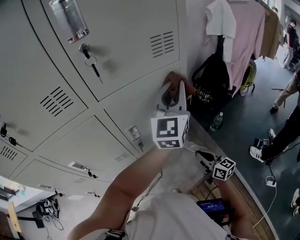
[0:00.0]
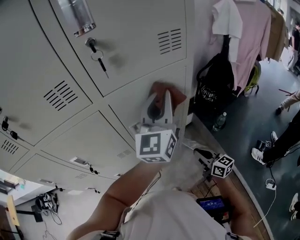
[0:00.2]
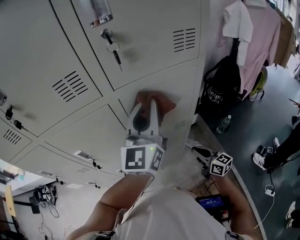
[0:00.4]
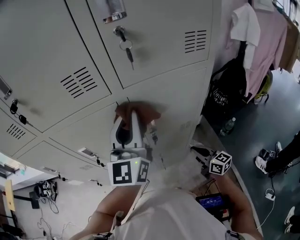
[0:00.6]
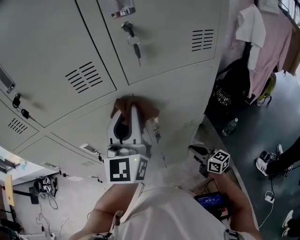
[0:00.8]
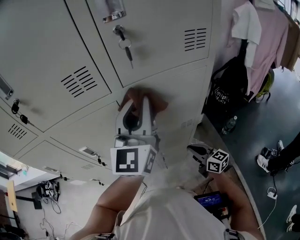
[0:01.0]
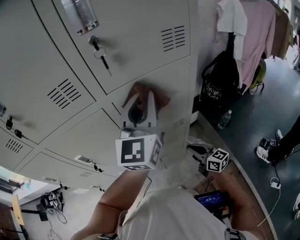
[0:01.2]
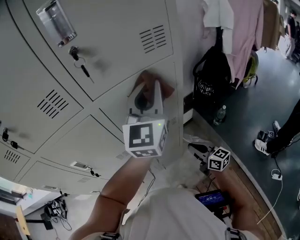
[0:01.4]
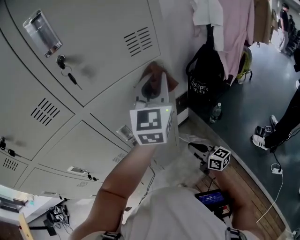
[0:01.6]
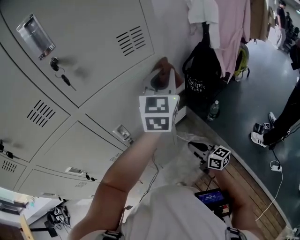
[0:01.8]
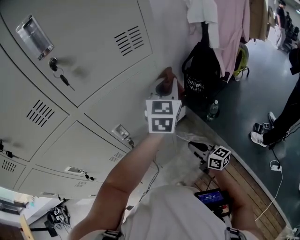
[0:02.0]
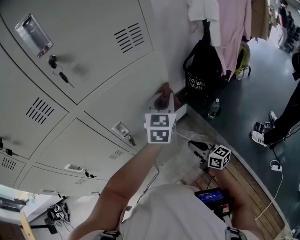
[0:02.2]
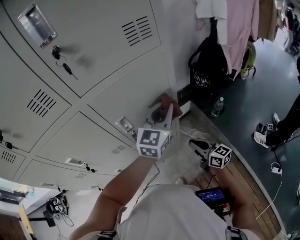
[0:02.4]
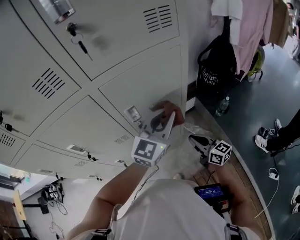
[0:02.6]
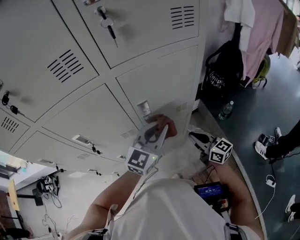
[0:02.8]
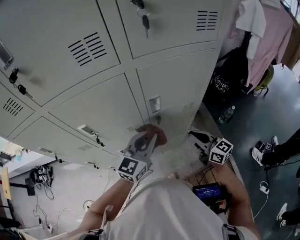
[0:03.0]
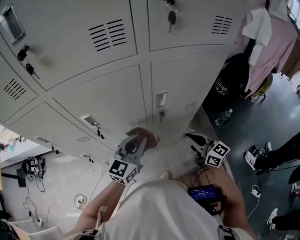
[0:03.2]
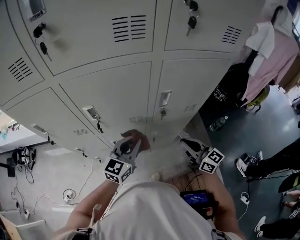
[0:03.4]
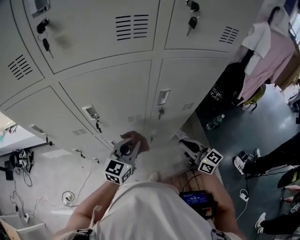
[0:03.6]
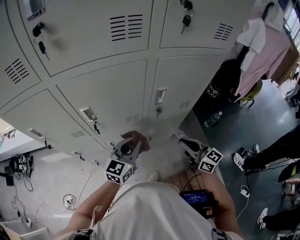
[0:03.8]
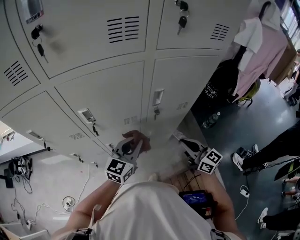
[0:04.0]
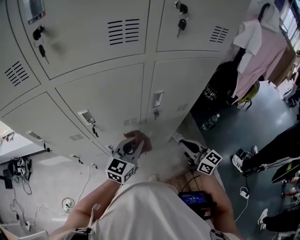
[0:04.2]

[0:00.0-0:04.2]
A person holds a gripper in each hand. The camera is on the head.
0:00.0 to 0:01.4: The left gripper reaches roughly 25 cm to the left, then returns.
0:01.4 to 0:02.8: The left gripper travels downward and backward by roughly 25 cm, and changes its angle by about 20 degrees.
0:02.8 to 0:04.2: The left gripper travels to the left and downward by roughly 15 cm; the right gripper heads to the left and backward, covering roughly 10 cm.

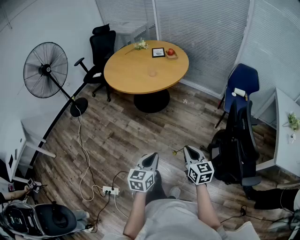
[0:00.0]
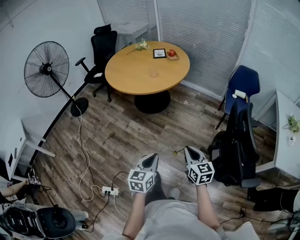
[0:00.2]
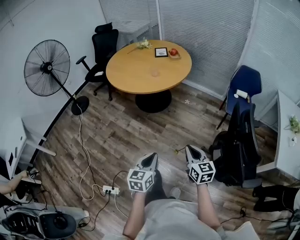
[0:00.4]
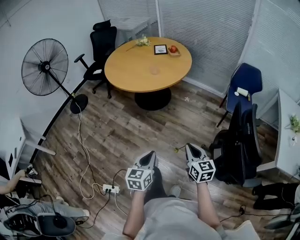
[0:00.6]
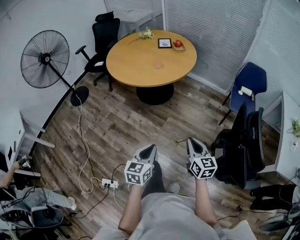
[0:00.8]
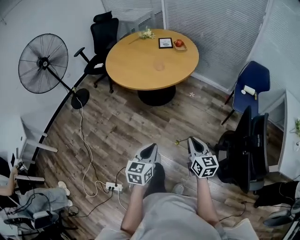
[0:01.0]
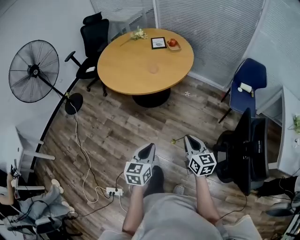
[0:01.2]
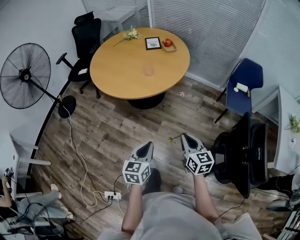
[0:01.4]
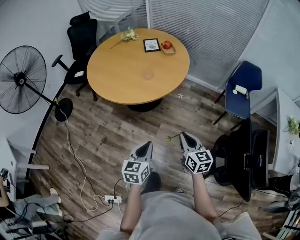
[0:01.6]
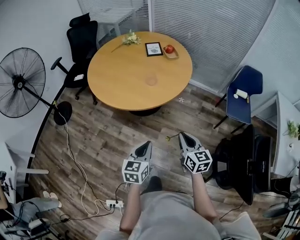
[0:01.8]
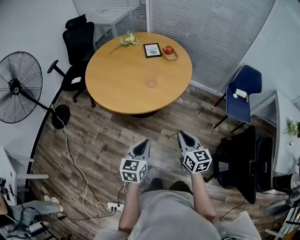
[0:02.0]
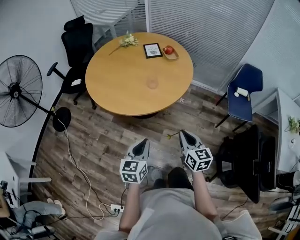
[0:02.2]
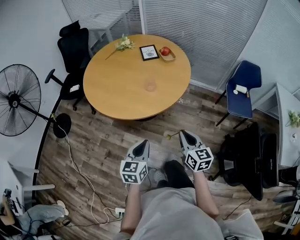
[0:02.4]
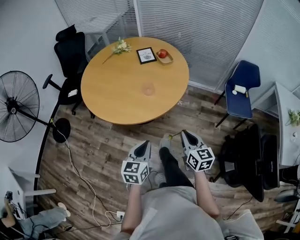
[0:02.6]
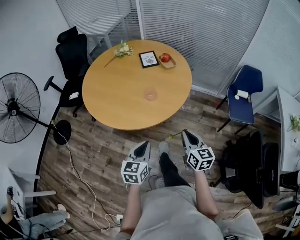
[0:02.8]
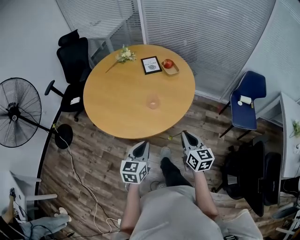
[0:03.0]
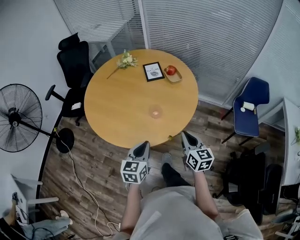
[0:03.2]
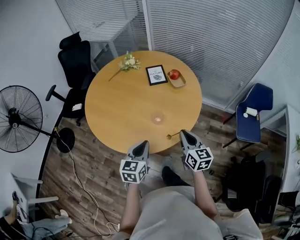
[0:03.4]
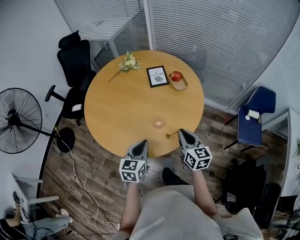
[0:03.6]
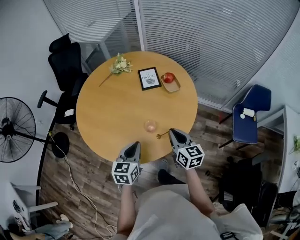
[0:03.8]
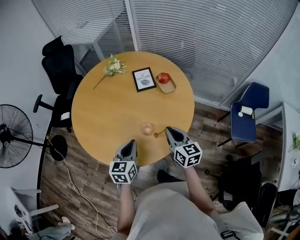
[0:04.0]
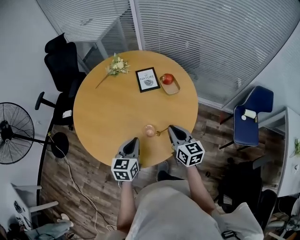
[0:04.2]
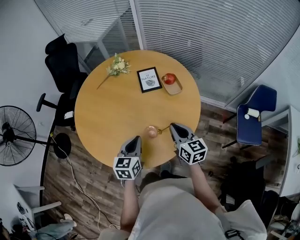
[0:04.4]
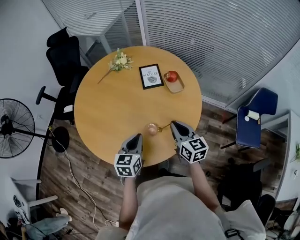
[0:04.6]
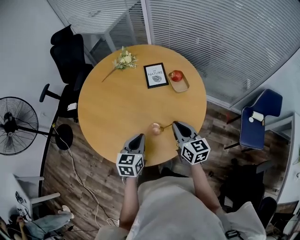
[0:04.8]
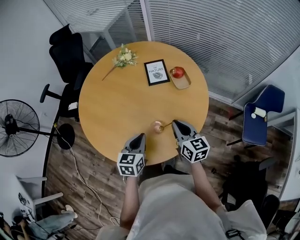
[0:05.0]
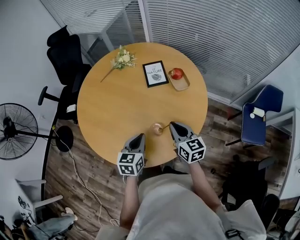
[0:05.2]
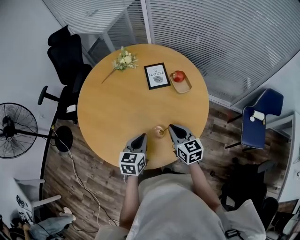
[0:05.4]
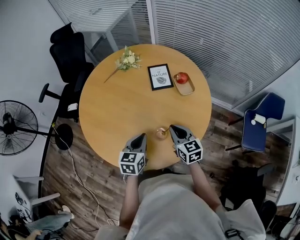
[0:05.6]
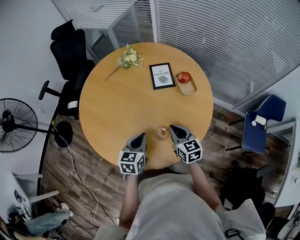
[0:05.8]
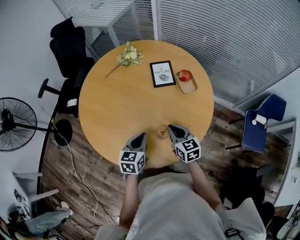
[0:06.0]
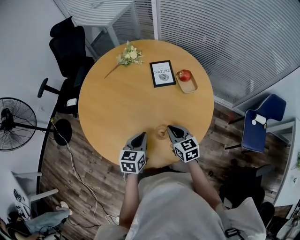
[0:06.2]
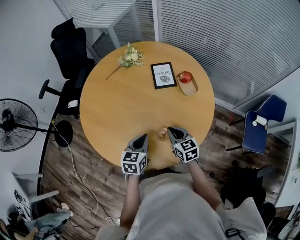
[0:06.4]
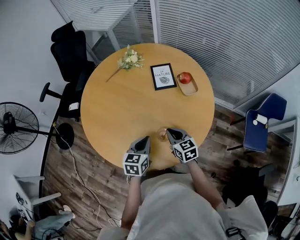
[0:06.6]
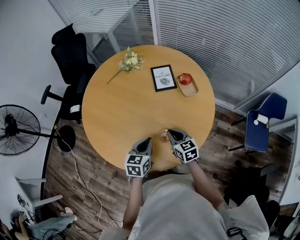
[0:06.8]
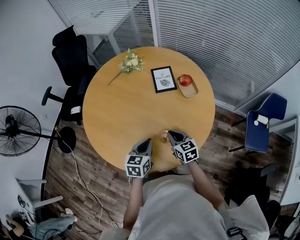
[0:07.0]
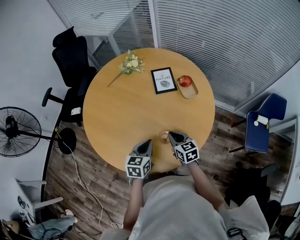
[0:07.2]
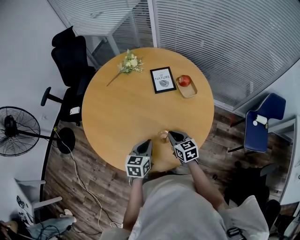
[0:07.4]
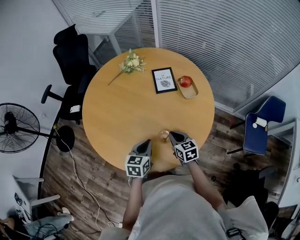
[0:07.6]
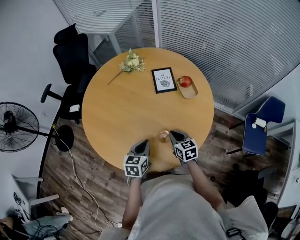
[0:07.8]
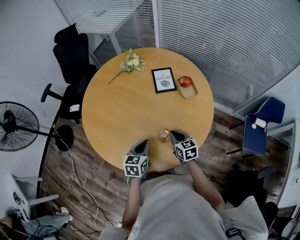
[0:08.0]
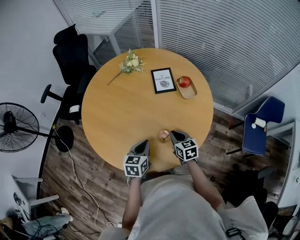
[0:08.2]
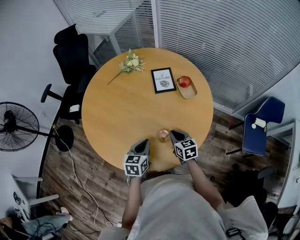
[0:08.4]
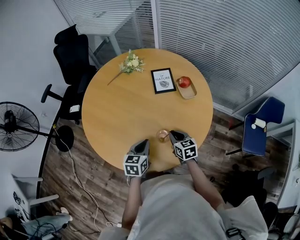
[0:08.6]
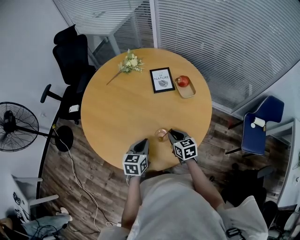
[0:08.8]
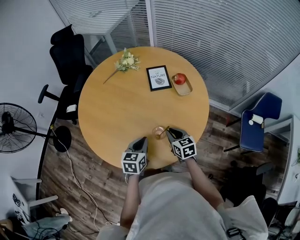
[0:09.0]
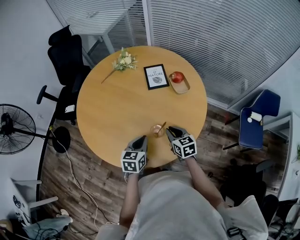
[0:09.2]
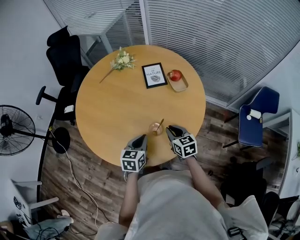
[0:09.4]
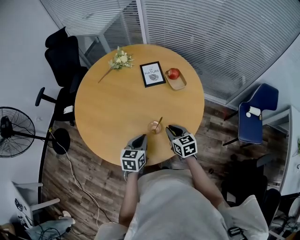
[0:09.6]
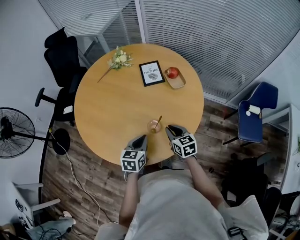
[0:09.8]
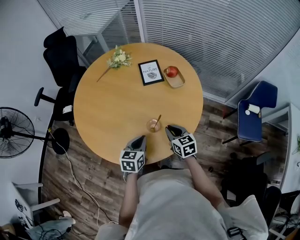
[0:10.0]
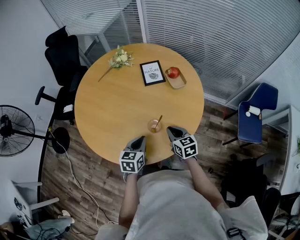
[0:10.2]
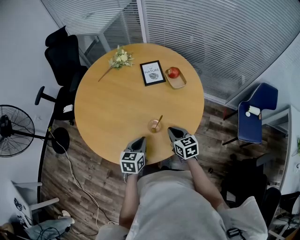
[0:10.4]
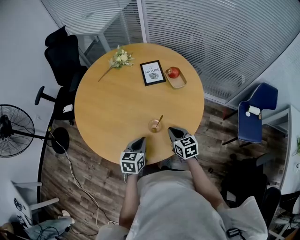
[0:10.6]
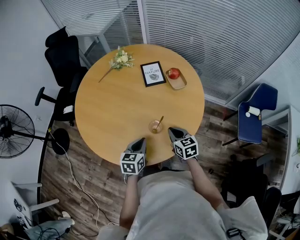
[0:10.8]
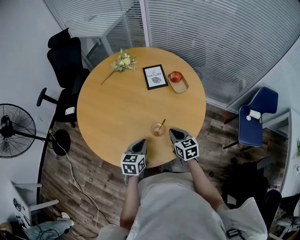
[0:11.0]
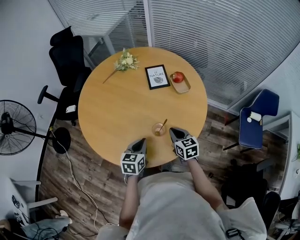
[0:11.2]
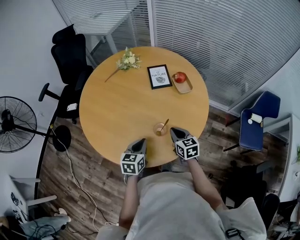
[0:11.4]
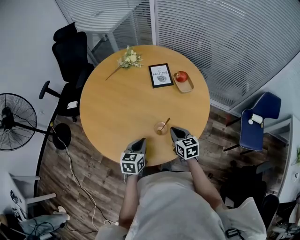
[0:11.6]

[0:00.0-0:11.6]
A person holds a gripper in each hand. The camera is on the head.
0:00.0 to 0:01.4: Both grippers move forward, roughly 20 cm.
0:01.4 to 0:02.8: The left gripper goes about 25 cm forward and to the left, while the right gripper heads forward, covering some 20 cm.
0:02.8 to 0:04.4: The two grippers go roughly 35 cm forward.
0:04.4 to 0:05.8: The right gripper heads downward and to the left, covering roughly 10 cm. Meanwhile the left gripper shifts by about 5 cm.
0:05.8 to 0:07.2: The right gripper travels downward by about 5 cm.
0:07.2 to 0:08.8: The grippers stay close to where they were, moving slightly.
0:08.8 to 0:10.2: The right gripper moves approximately 5 cm.
0:10.2 to 0:11.6: The grippers make only small movements.

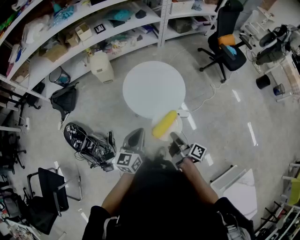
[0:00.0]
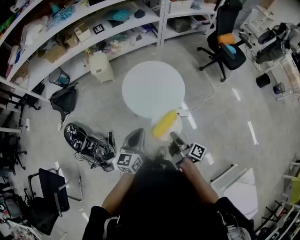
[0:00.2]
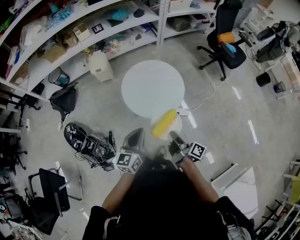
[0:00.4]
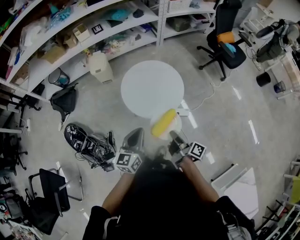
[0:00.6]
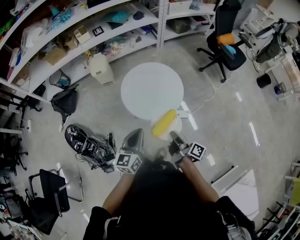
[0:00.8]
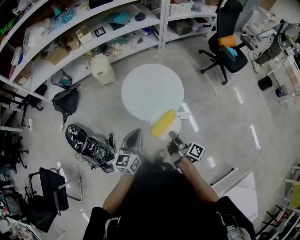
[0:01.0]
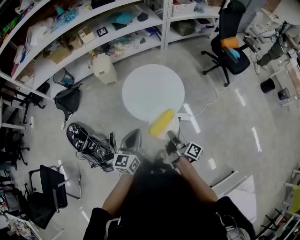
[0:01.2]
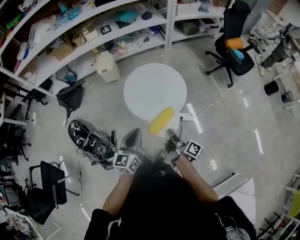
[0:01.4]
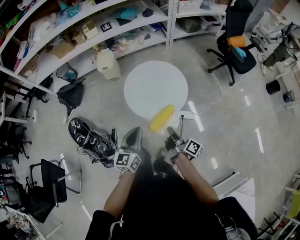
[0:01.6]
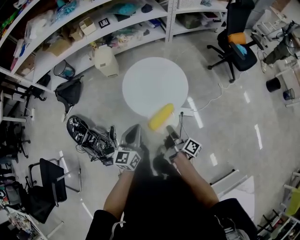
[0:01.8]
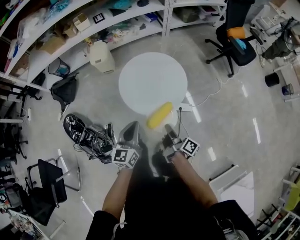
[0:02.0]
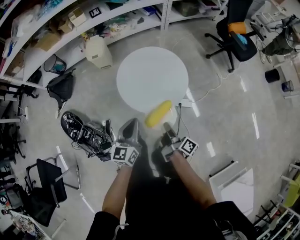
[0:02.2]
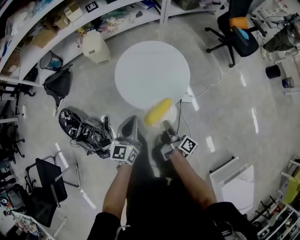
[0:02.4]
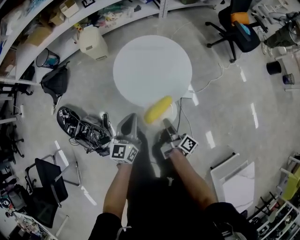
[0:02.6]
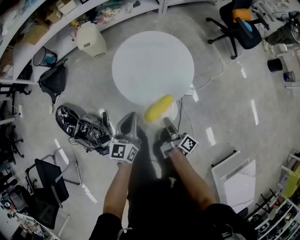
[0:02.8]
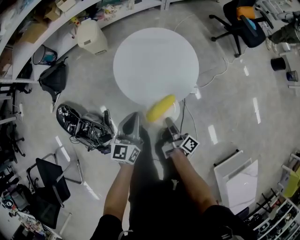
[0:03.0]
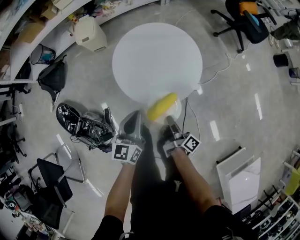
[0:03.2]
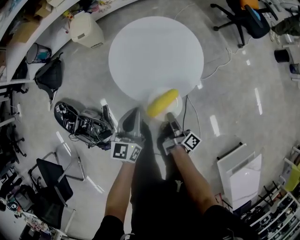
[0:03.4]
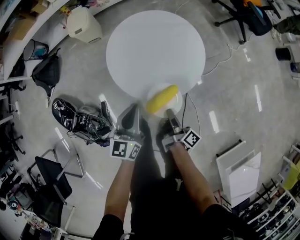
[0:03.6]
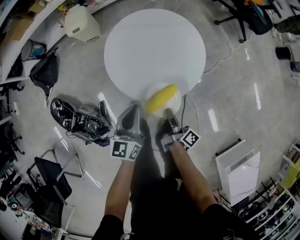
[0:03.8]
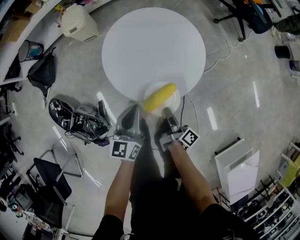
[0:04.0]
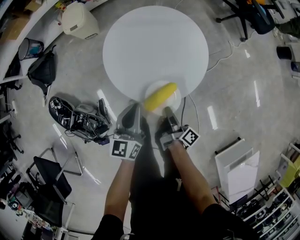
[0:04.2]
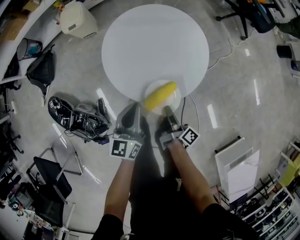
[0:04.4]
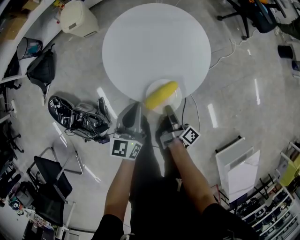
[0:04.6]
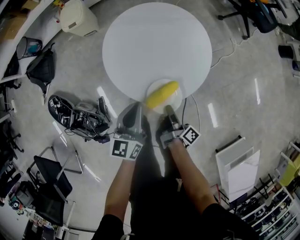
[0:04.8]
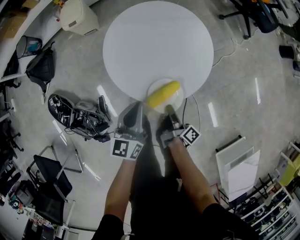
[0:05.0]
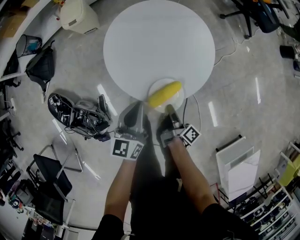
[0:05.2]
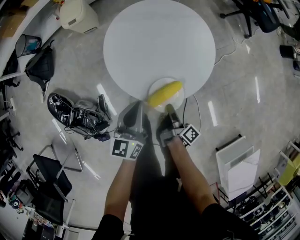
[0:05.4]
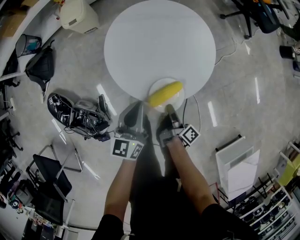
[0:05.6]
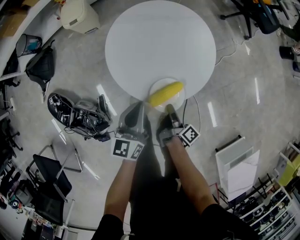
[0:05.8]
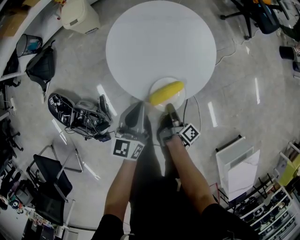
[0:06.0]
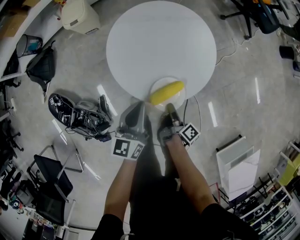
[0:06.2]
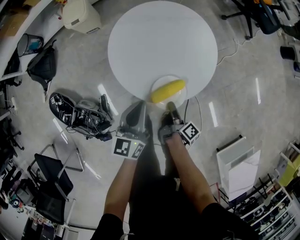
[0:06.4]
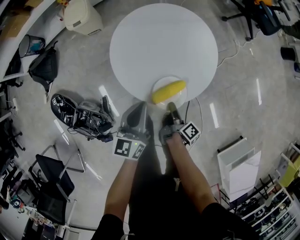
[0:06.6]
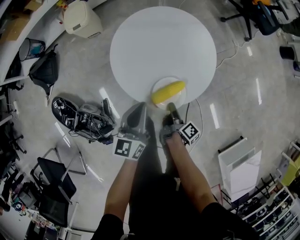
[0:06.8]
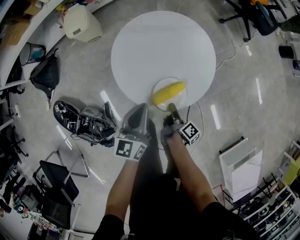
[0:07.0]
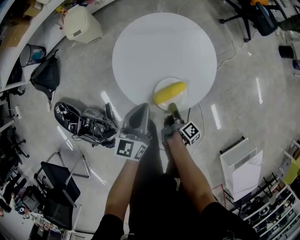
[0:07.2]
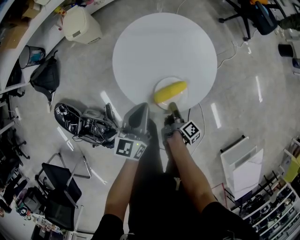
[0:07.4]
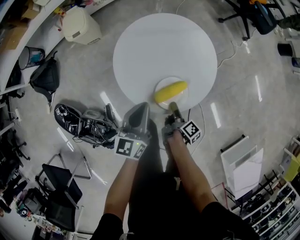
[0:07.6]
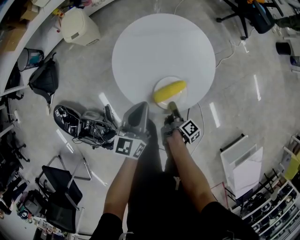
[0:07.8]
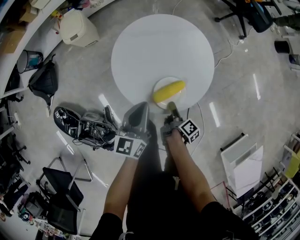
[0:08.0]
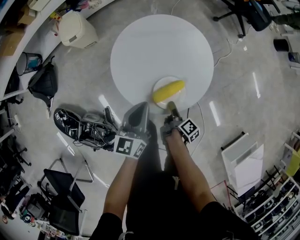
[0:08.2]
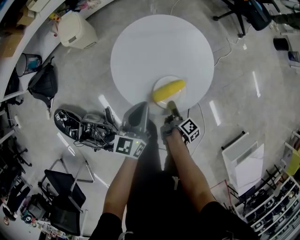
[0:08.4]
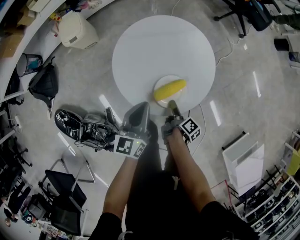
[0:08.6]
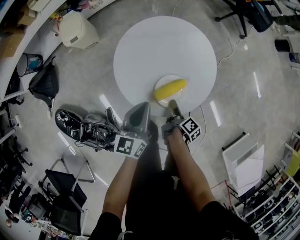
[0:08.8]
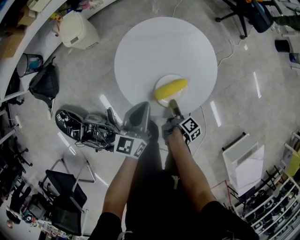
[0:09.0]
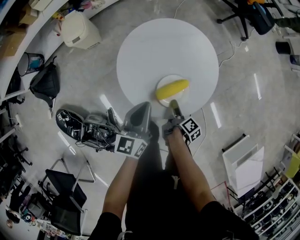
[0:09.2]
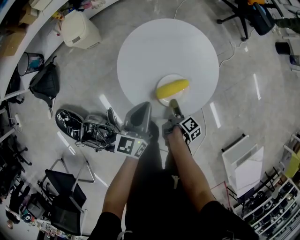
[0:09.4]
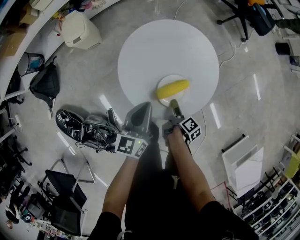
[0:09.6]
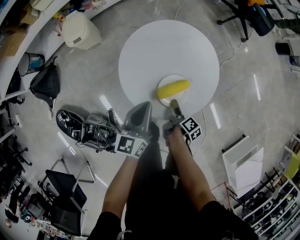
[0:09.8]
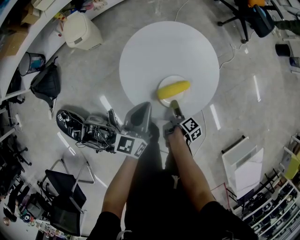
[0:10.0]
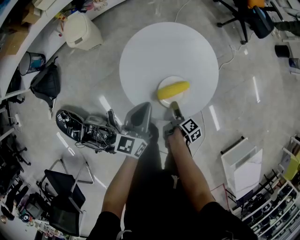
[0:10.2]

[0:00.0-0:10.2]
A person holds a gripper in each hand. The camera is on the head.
0:01.4 to 0:03.0: The left gripper moves downward, about 15 cm.
0:03.0 to 0:04.4: The left gripper is displaced downward by about 5 cm.
